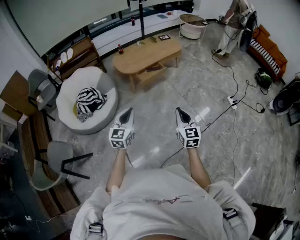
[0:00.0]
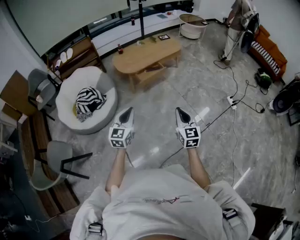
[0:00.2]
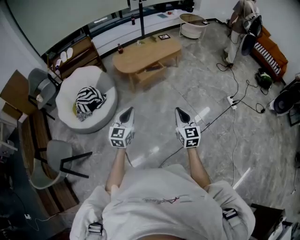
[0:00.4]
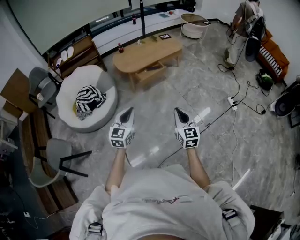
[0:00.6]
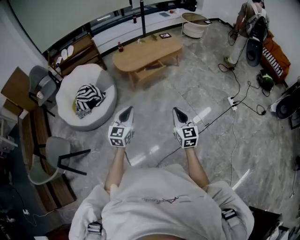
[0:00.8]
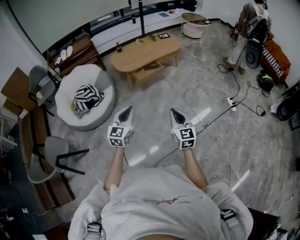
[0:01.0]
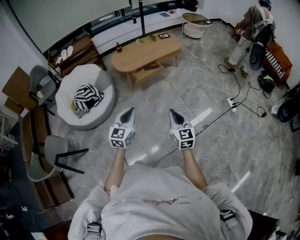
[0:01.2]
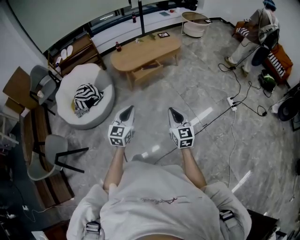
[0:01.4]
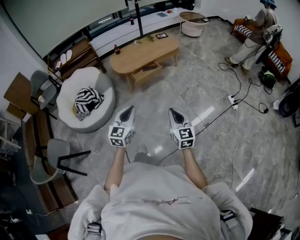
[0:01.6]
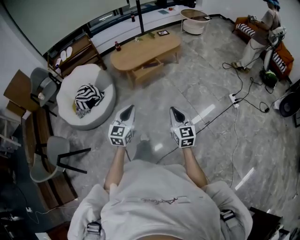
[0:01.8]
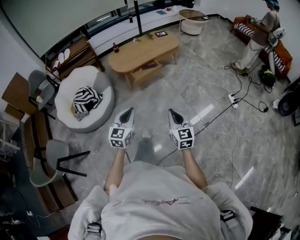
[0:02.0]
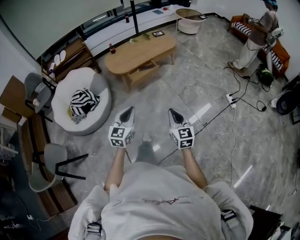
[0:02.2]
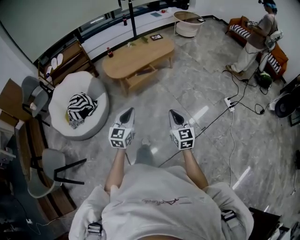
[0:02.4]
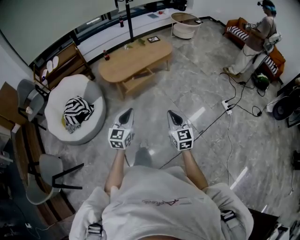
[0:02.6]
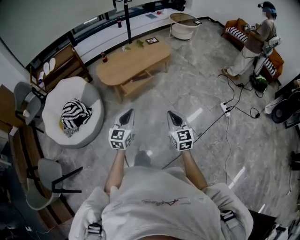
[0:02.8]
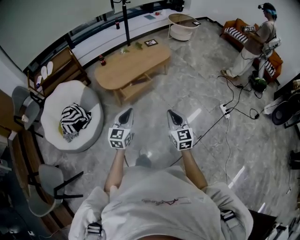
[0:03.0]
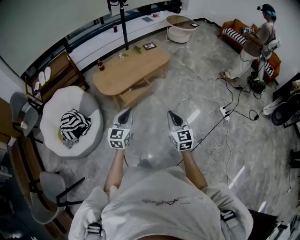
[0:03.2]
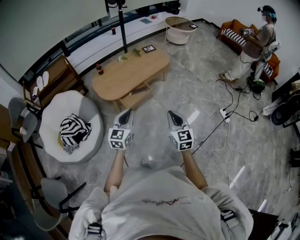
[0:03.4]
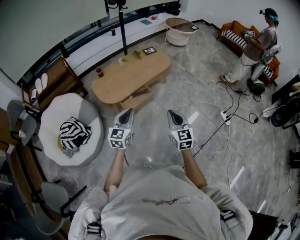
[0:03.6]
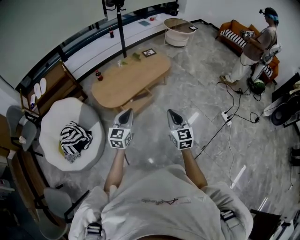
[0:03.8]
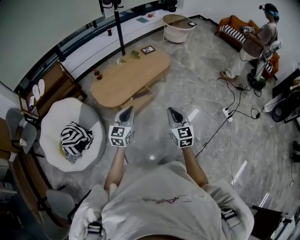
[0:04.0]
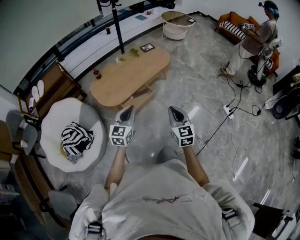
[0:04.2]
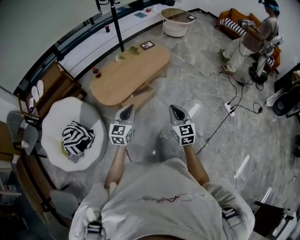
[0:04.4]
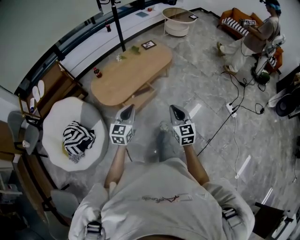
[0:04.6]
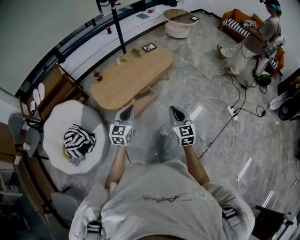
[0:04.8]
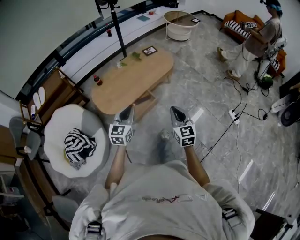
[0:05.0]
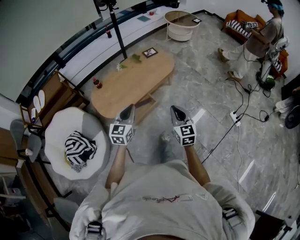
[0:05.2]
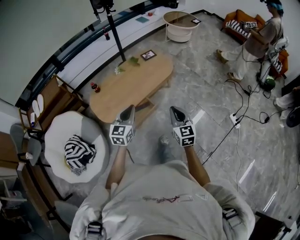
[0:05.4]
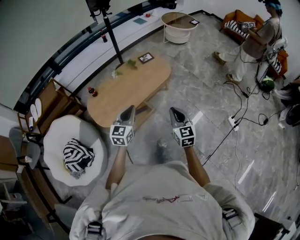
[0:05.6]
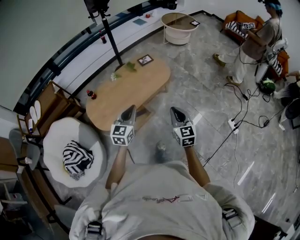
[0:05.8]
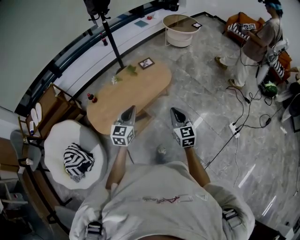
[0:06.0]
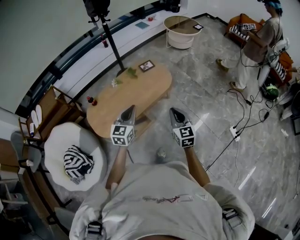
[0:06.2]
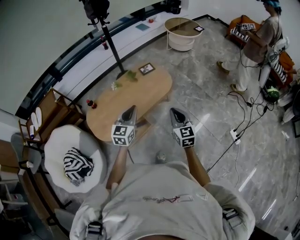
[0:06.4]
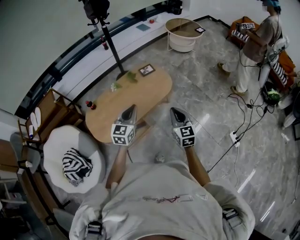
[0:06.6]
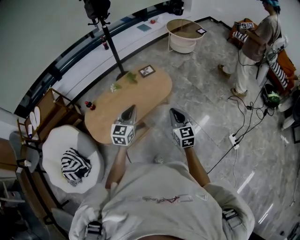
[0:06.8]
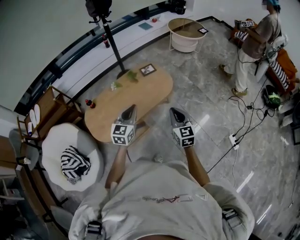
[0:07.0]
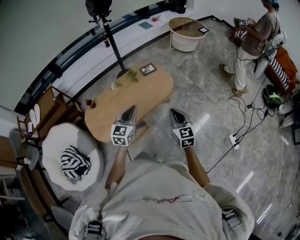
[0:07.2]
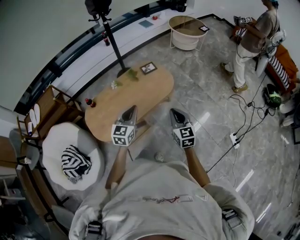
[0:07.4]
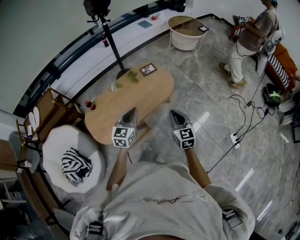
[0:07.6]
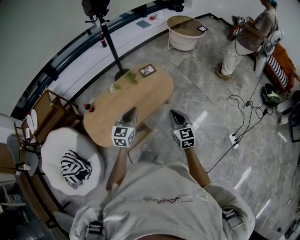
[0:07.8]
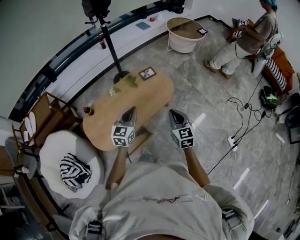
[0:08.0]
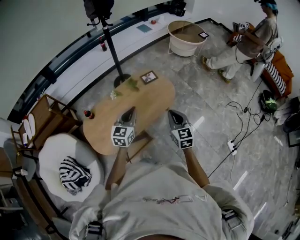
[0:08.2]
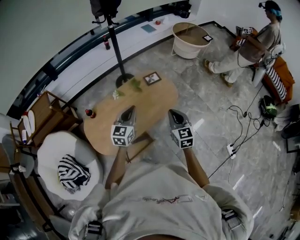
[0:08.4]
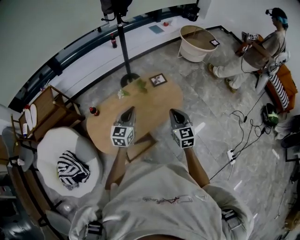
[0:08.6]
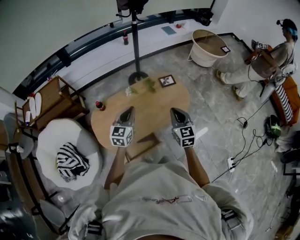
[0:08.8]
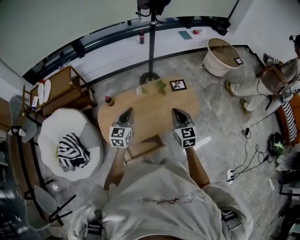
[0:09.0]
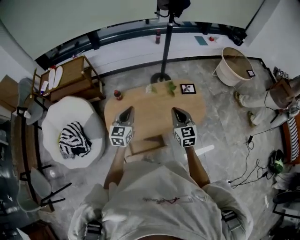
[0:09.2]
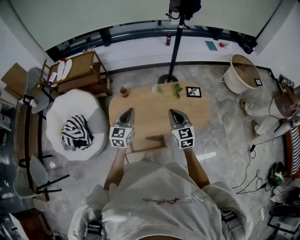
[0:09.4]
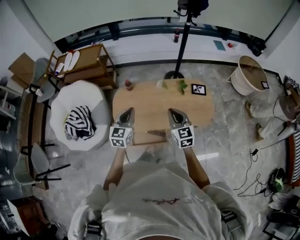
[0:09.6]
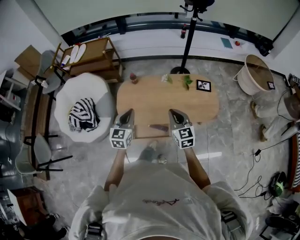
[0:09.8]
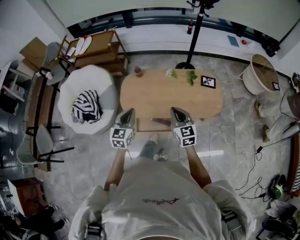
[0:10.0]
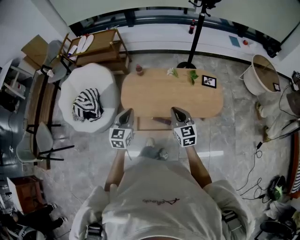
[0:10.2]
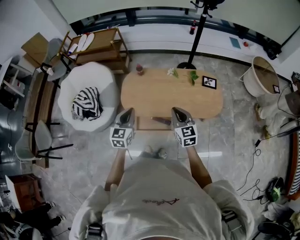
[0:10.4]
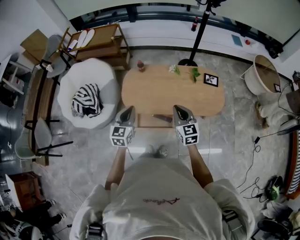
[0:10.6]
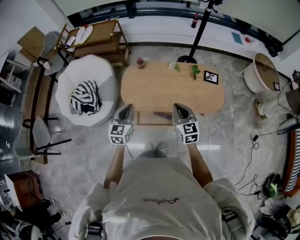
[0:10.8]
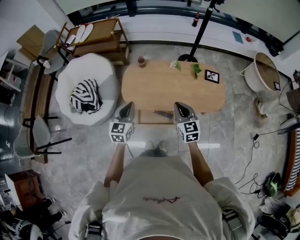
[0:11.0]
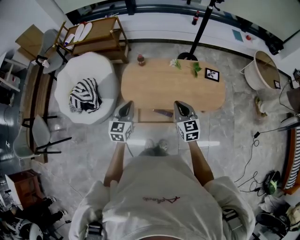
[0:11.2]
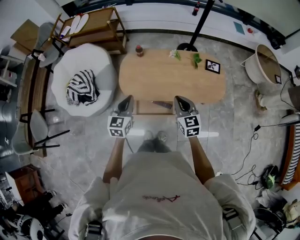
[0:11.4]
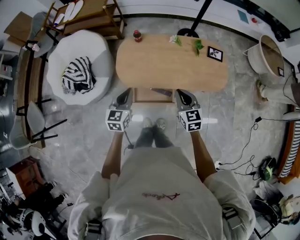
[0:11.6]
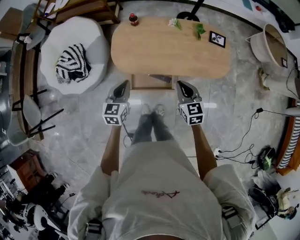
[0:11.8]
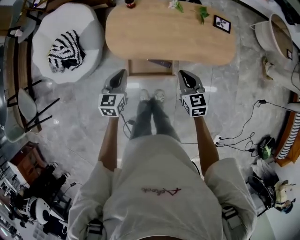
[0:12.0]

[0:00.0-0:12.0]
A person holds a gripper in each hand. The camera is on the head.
0:00.0 to 0:01.6: The grippers both shift to the right by approximately 10 cm.
0:01.6 to 0:03.0: Both grippers move forward, about 25 cm.
0:03.0 to 0:04.4: The grippers both shift forward by some 25 cm.
0:04.4 to 0:06.0: The two grippers go roughly 35 cm forward.
0:06.0 to 0:07.6: Both grippers move forward, roughly 15 cm.
0:07.6 to 0:09.0: Both grippers travel together to the left and forward, about 25 cm. The left gripper changes its angle by roughly 20 degrees.
0:09.0 to 0:10.4: The left gripper changes place by some 20 cm, and turns by some 30 degrees, while the right gripper shifts by some 10 cm, and changes its angle by roughly 30 degrees.
0:10.4 to 0:12.0: The two grippers go about 15 cm downward.

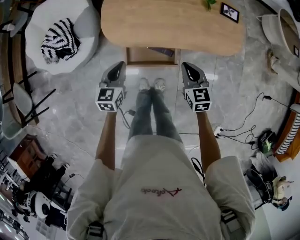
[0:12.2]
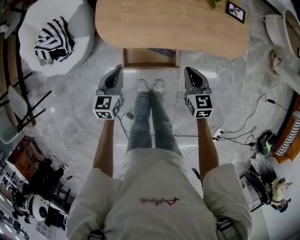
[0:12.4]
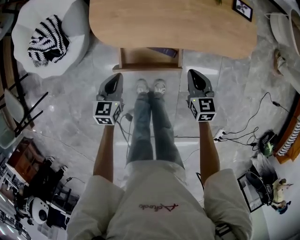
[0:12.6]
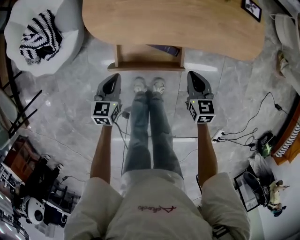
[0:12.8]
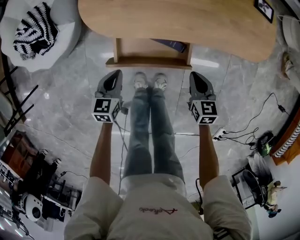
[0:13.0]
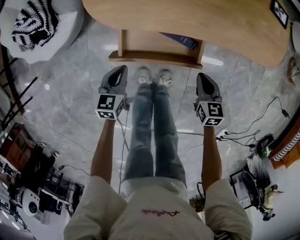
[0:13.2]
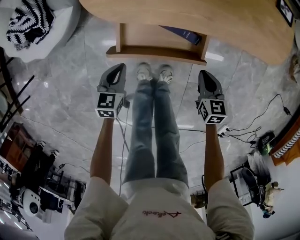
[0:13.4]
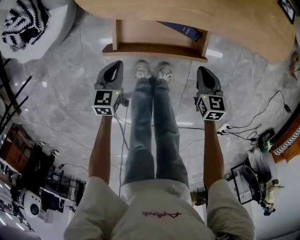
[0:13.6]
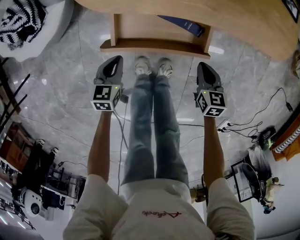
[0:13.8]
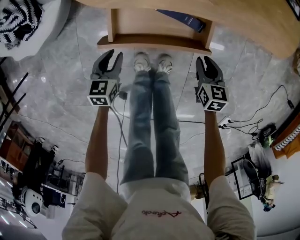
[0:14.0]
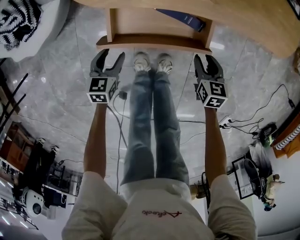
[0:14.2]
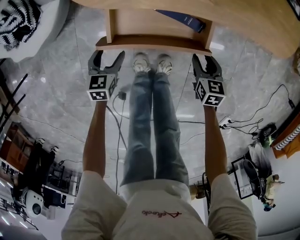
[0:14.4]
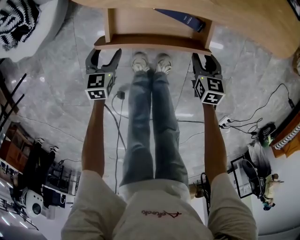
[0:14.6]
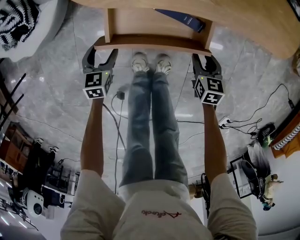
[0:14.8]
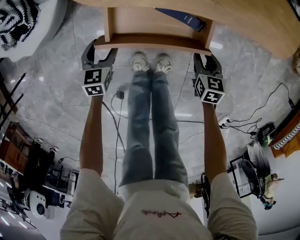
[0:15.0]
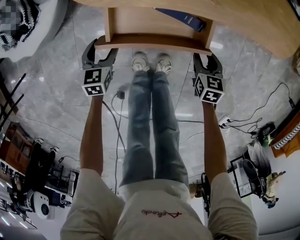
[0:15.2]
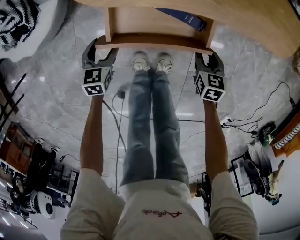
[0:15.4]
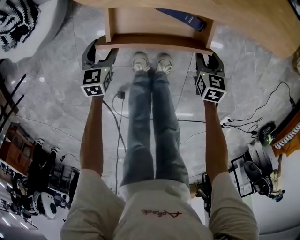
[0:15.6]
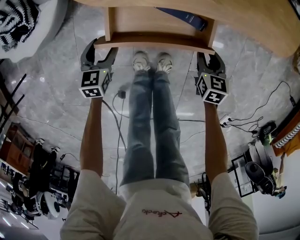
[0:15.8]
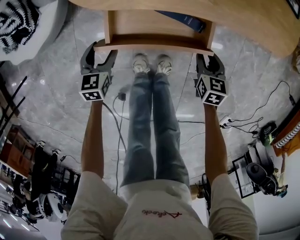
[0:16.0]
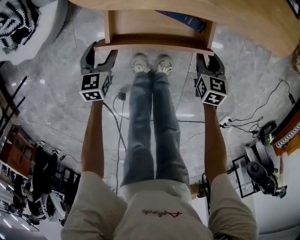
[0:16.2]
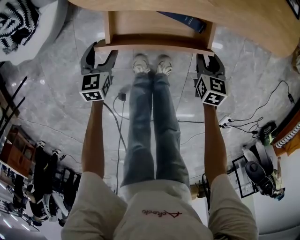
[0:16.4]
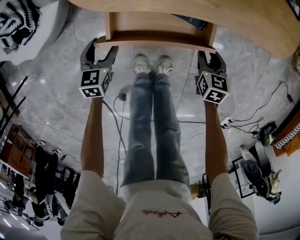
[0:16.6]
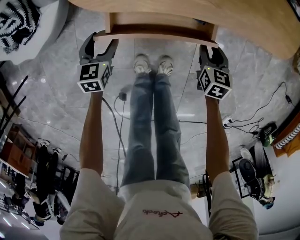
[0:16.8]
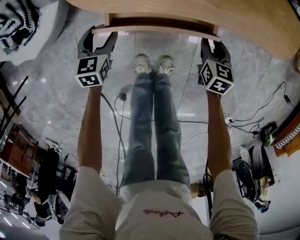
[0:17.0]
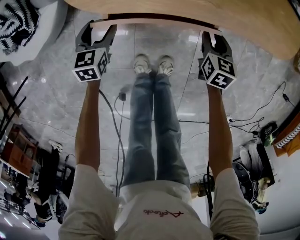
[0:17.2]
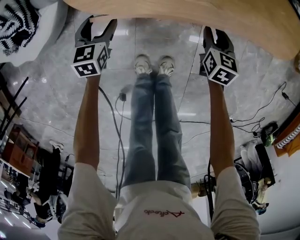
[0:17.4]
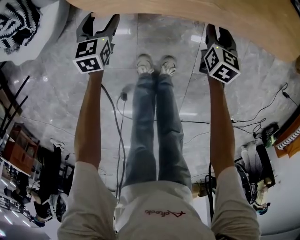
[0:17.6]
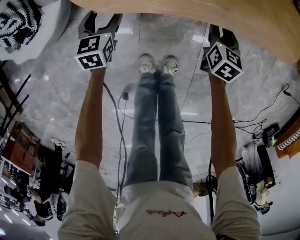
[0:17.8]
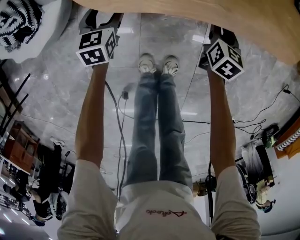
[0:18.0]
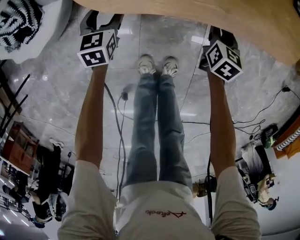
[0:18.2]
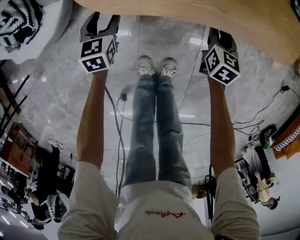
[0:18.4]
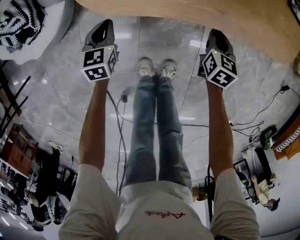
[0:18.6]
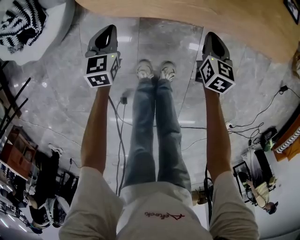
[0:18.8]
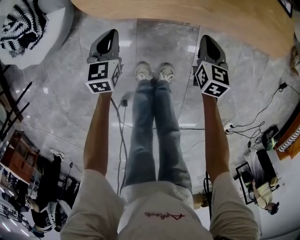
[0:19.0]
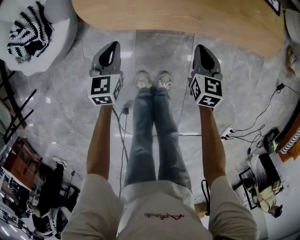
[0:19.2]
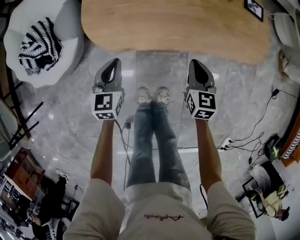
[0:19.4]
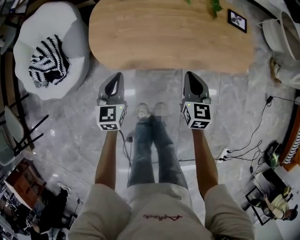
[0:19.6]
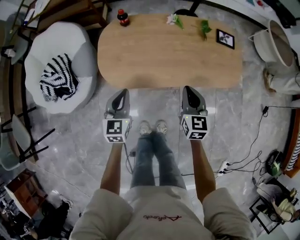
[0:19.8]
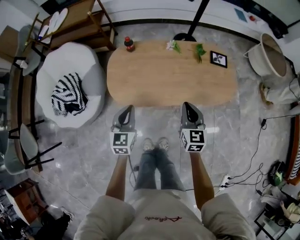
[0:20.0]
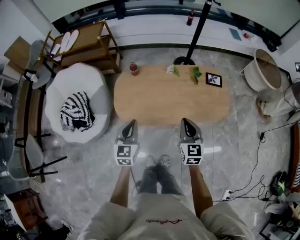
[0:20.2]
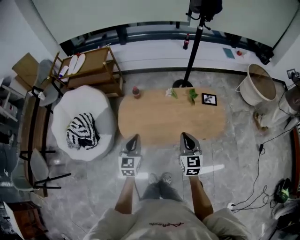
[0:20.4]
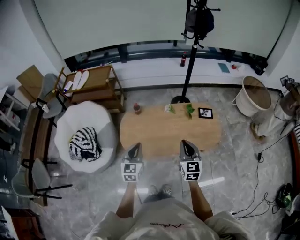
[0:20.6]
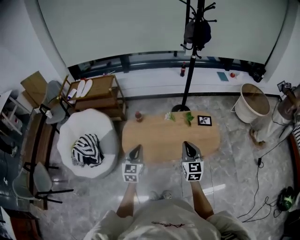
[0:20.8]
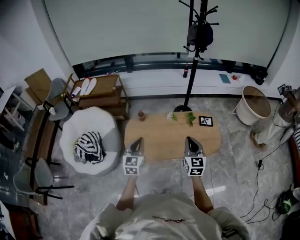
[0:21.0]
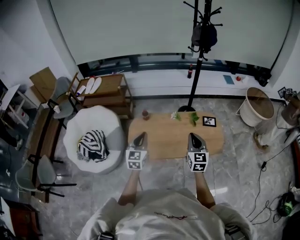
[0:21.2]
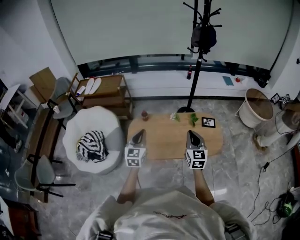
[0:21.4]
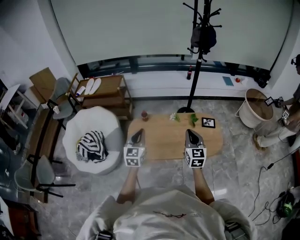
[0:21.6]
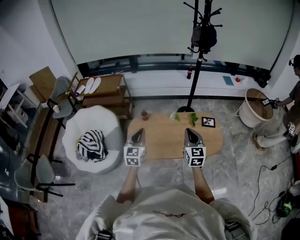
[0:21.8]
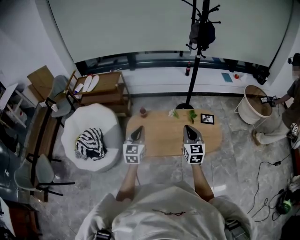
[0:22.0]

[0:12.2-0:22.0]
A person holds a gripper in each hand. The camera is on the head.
0:12.2 to 0:13.6: Both grippers travel together downward, approximately 40 cm.
0:13.6 to 0:15.0: Both grippers travel together downward, approximately 5 cm. The right gripper opens its fingers, while the left gripper opens its fingers.
0:15.0 to 0:16.4: The grippers move only a little.
0:16.4 to 0:17.8: The two grippers go some 15 cm forward.
0:17.8 to 0:19.2: The left gripper travels upward, backward and to the right by roughly 15 cm, and closes, while the right gripper heads upward and backward, covering some 15 cm, and closes its fingers.
0:19.2 to 0:20.6: Both grippers travel together upward, roughly 60 cm. The right gripper changes its angle by roughly 30 degrees; the left gripper turns by roughly 20 degrees.
0:20.6 to 0:22.0: The two grippers go approximately 10 cm upward.

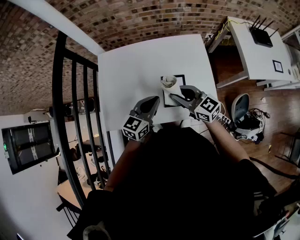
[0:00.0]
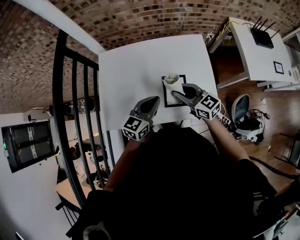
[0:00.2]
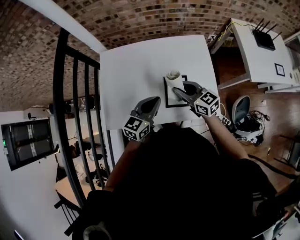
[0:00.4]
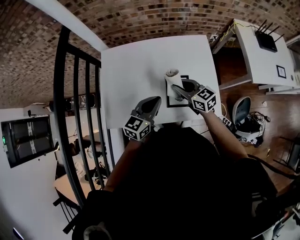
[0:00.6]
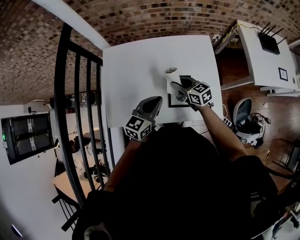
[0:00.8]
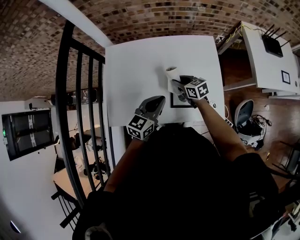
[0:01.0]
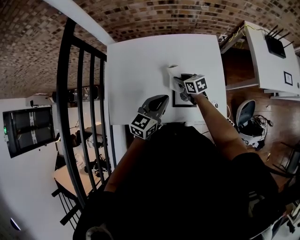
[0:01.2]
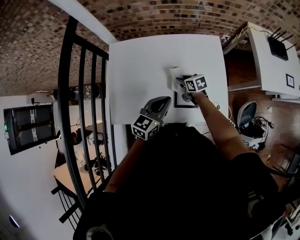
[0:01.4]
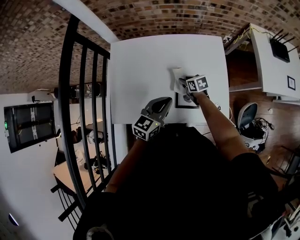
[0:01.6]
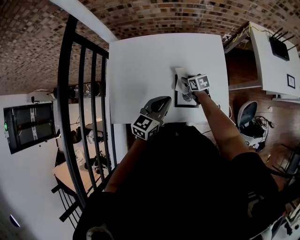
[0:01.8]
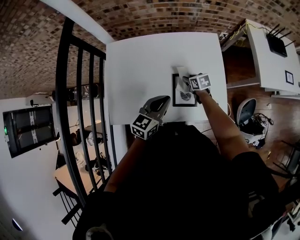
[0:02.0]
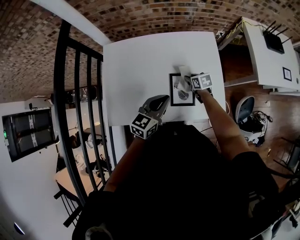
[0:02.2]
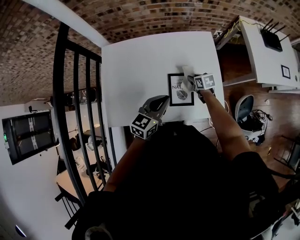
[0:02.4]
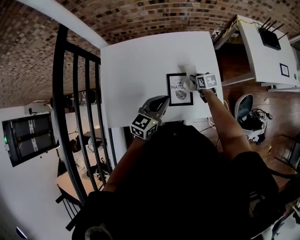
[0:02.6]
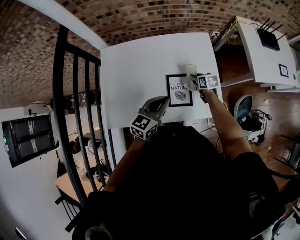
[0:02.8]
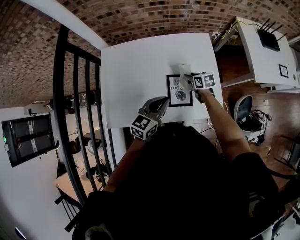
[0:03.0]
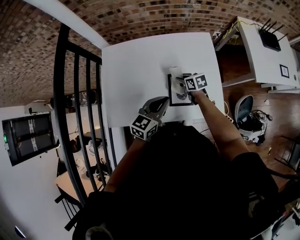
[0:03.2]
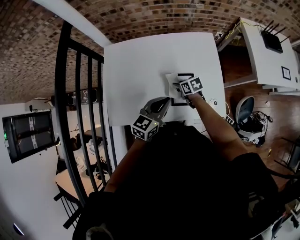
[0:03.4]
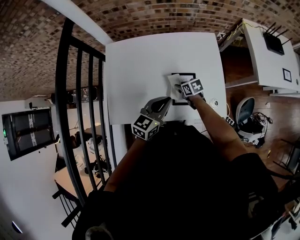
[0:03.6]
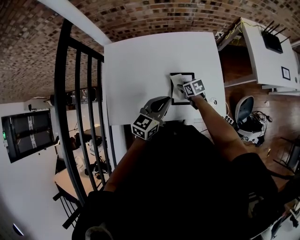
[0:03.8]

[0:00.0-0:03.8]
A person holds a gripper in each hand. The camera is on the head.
0:00.0 to 0:01.2: The right gripper goes roughly 25 cm downward and forward, and turns by some 30 degrees.
0:01.2 to 0:02.6: The right gripper travels to the right by approximately 15 cm.
0:02.6 to 0:03.8: The right gripper shifts approximately 10 cm to the left.
